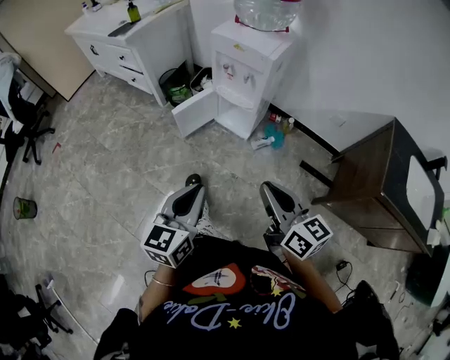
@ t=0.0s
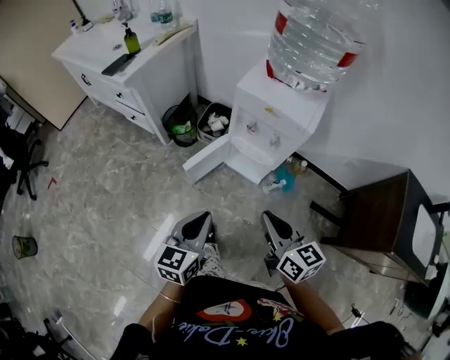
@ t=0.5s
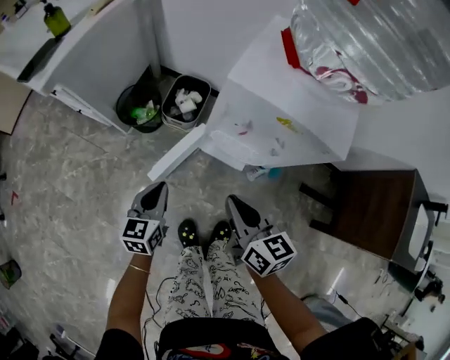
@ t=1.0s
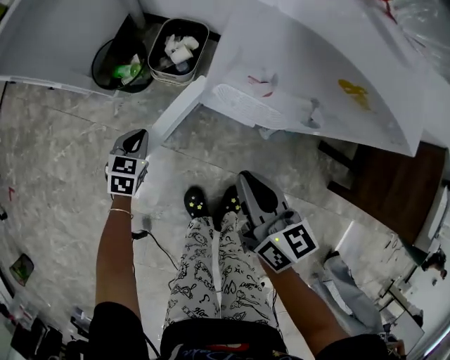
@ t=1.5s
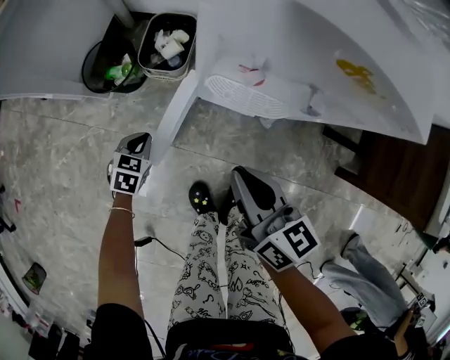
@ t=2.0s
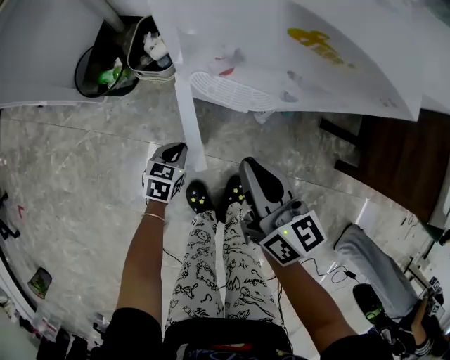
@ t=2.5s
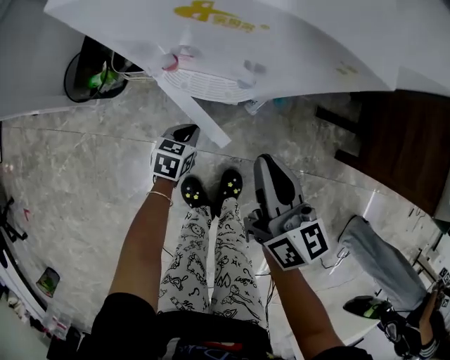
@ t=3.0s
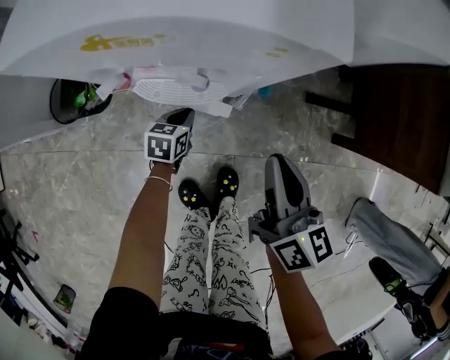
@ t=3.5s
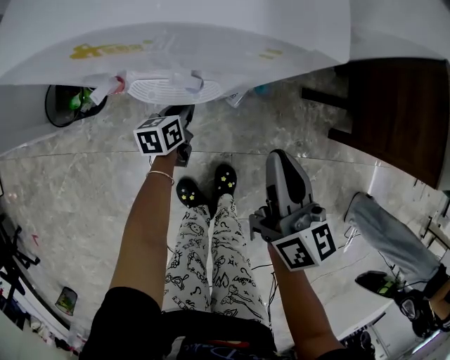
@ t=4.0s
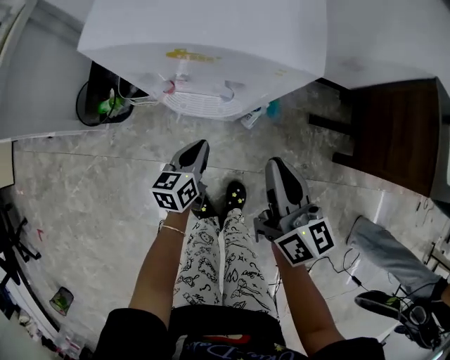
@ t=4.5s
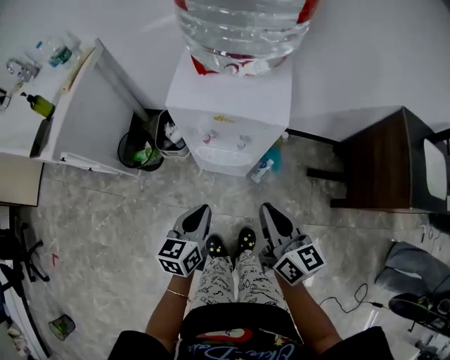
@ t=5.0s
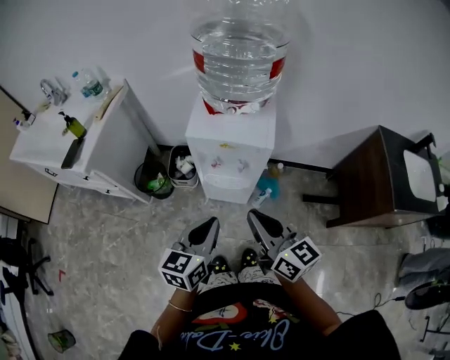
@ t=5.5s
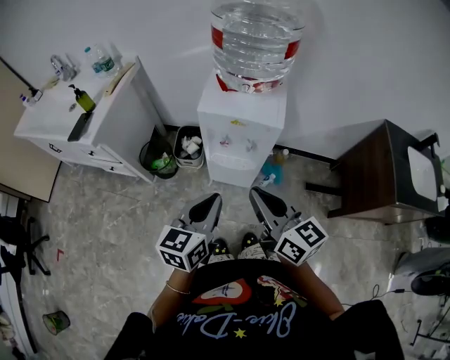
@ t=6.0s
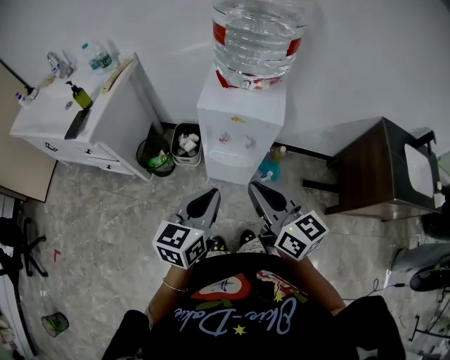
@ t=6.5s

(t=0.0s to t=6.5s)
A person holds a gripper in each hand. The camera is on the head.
t=0.0s - t=2.0s: The two grippers travel together, forward and to the left, approximately 50 cm. The left gripper is displaced downward by approximately 50 cm, and points its fingers approximately 40 degrees further downward; the right gripper is displaced downward by approximately 30 cm, and changes its angle by about 20 degrees.
t=2.0s - t=4.5s: The left gripper shifts by about 30 cm, and changes its angle by approximately 40 degrees. Meanwhile the right gripper changes place by roughly 20 cm, and rotates about 20 degrees.
t=4.5s - t=6.5s: The left gripper heads upward, covering some 40 cm, and rotates about 20 degrees. Meanwhile the right gripper moves upward, to the left and backward, roughly 30 cm, and swivels some 30 degrees.

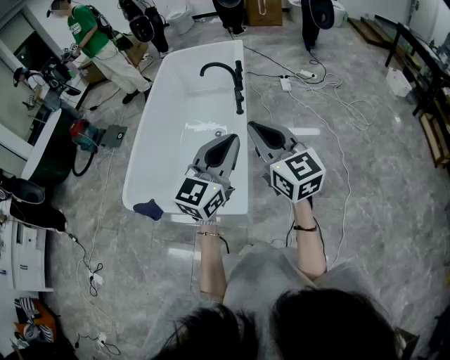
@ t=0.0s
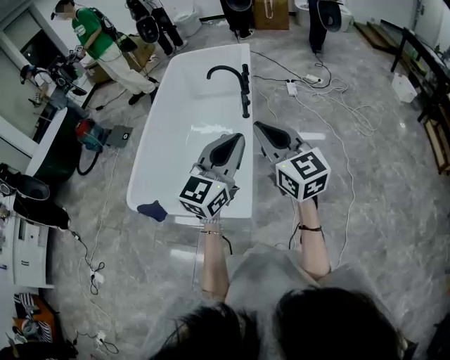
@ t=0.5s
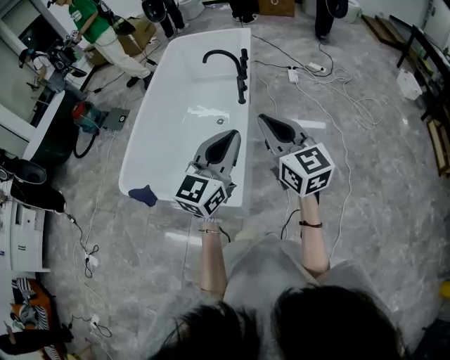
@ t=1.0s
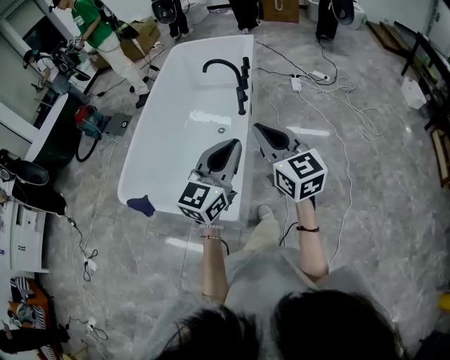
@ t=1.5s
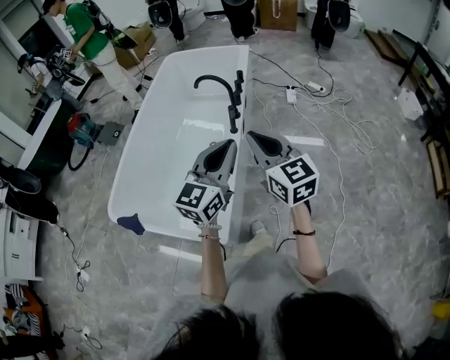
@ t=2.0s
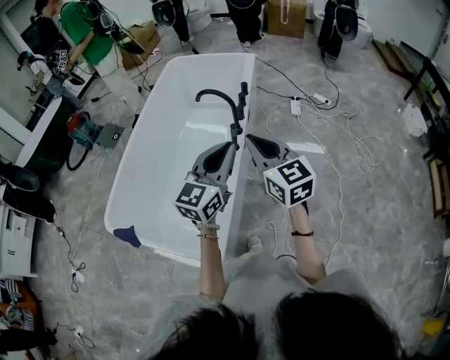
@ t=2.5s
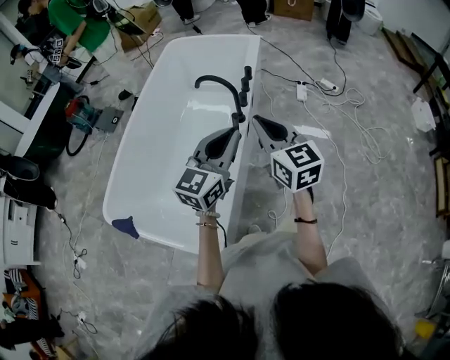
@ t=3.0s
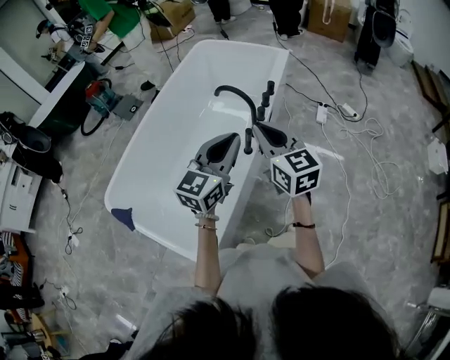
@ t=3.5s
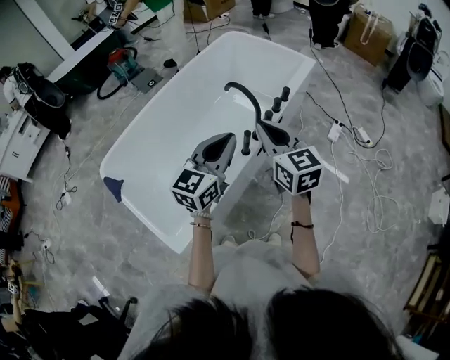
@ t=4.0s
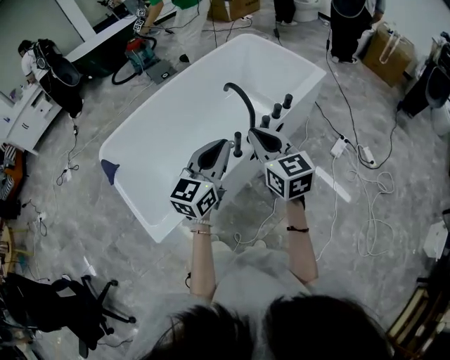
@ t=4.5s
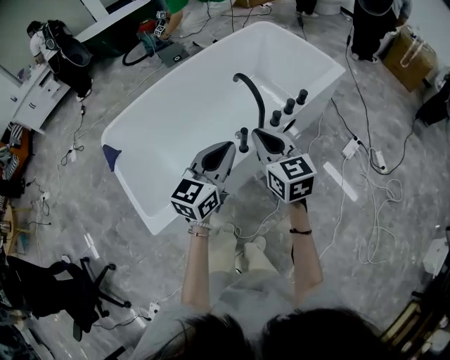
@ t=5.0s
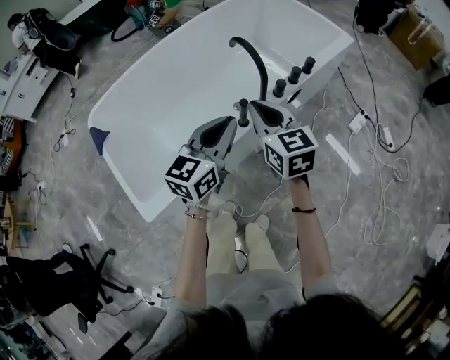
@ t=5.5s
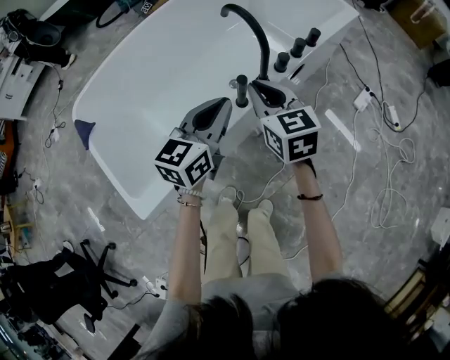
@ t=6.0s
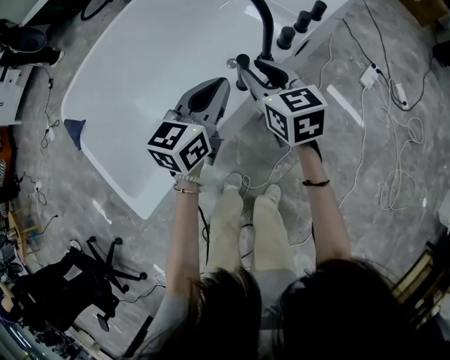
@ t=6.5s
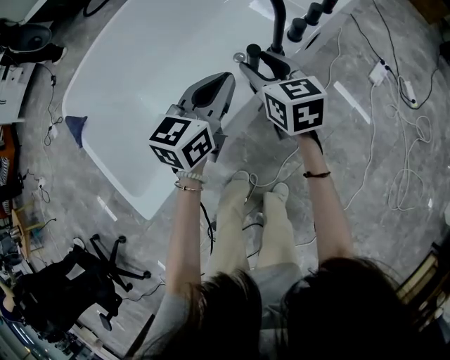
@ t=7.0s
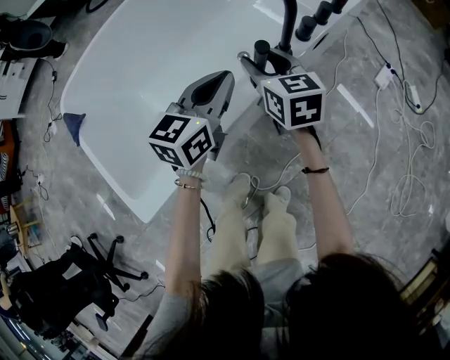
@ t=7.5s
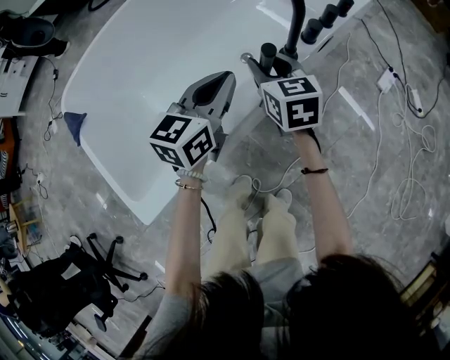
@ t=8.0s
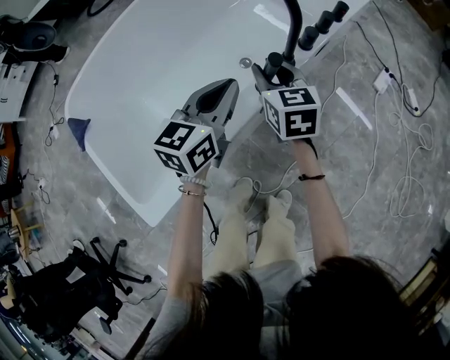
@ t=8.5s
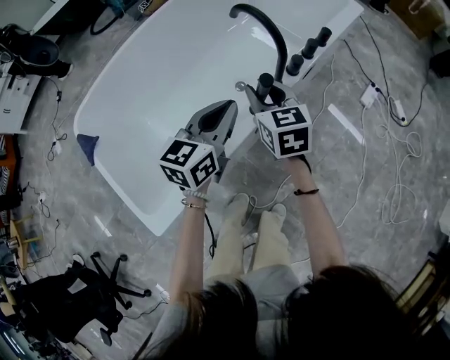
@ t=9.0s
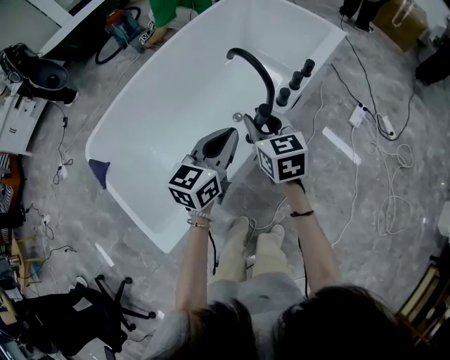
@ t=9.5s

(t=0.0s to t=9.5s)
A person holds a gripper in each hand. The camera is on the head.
t=0.0s - t=2.0s: Both grippers travel together forward, approximately 15 cm.
t=2.0s - t=4.0s: Both grippers travel together forward, roughly 25 cm. The right gripper turns by approximately 20 degrees, while the left gripper changes its angle by roughly 30 degrees.
t=4.0s - t=5.5s: The left gripper goes approximately 15 cm downward, while the right gripper travels downward and forward by about 15 cm.
t=5.5s - t=7.5s: The left gripper moves downward, about 20 cm. Meanwhile the right gripper is displaced downward and forward by about 20 cm, and opens its fingers.
t=7.5s - t=9.5s: Both grippers travel together upward, about 15 cm.

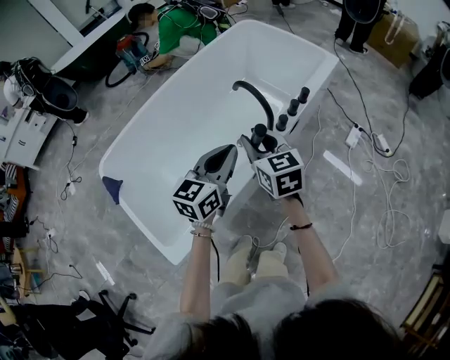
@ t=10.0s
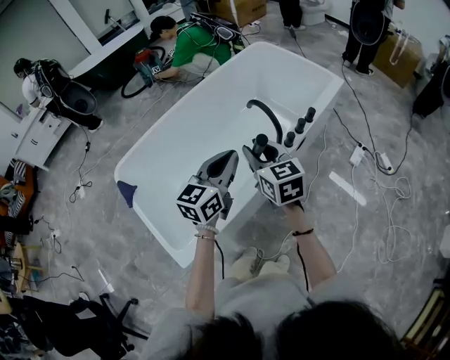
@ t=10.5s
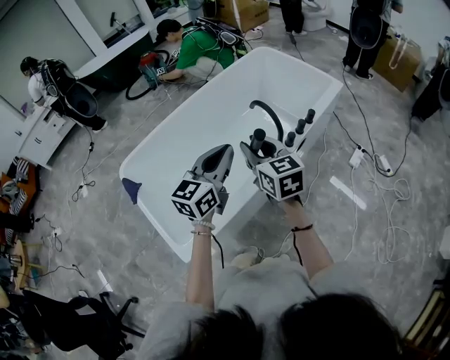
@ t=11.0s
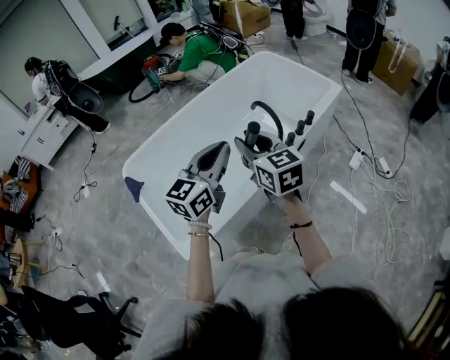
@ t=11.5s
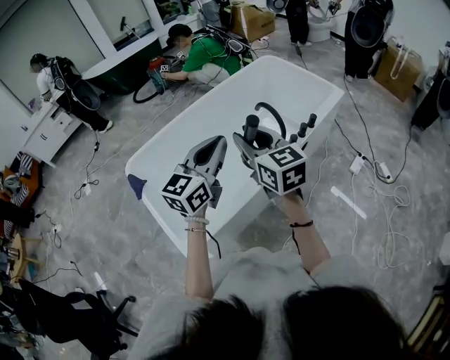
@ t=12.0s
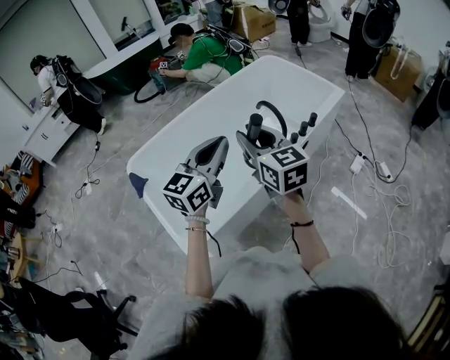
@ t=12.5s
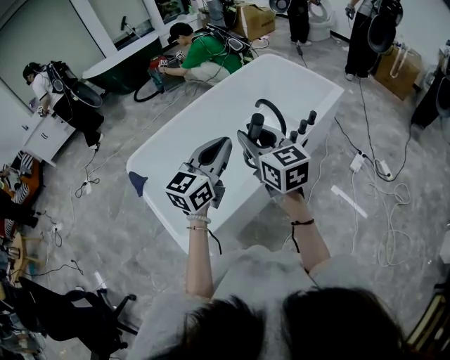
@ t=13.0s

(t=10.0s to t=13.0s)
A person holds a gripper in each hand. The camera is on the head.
t=10.0s - t=11.5s: Both grippers travel together upward, backward and to the left, approximately 15 cm.
t=11.5s - t=13.0s: The grippers move only a little.

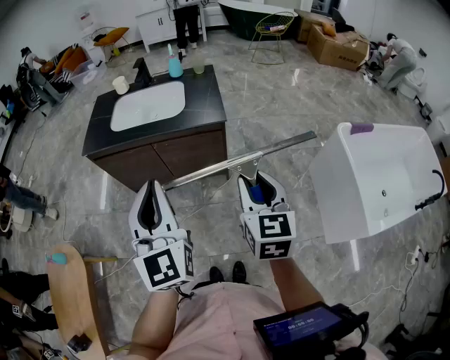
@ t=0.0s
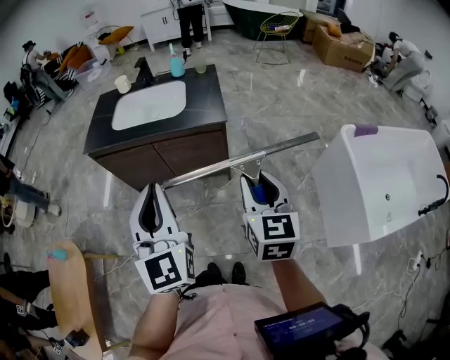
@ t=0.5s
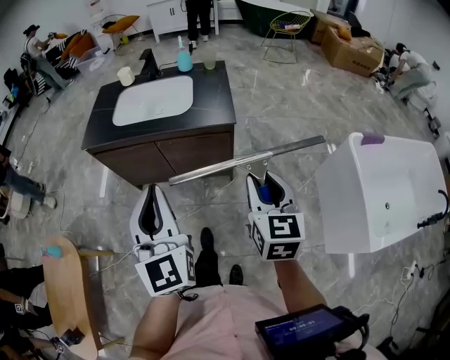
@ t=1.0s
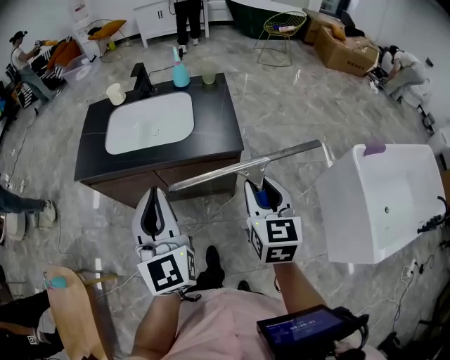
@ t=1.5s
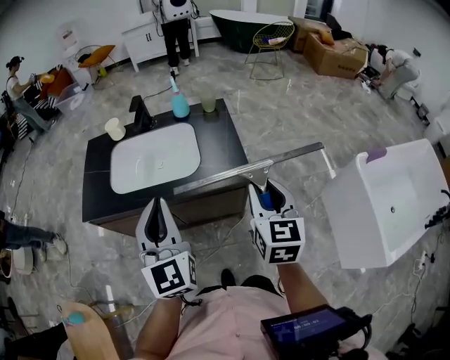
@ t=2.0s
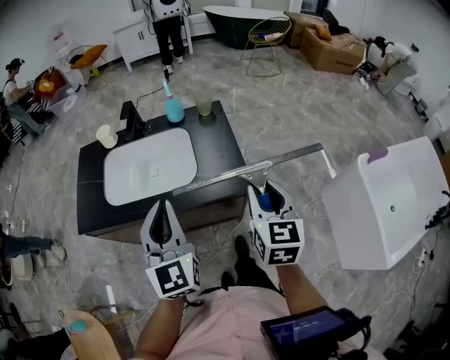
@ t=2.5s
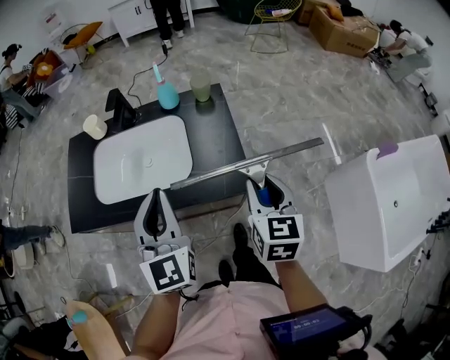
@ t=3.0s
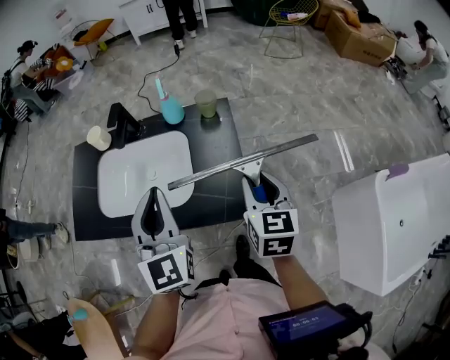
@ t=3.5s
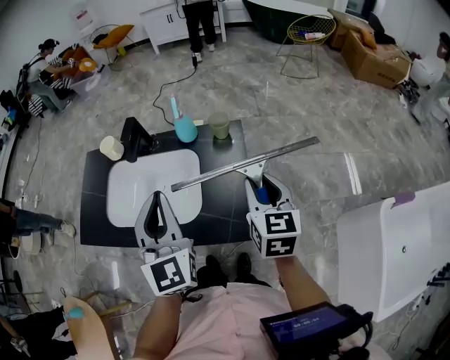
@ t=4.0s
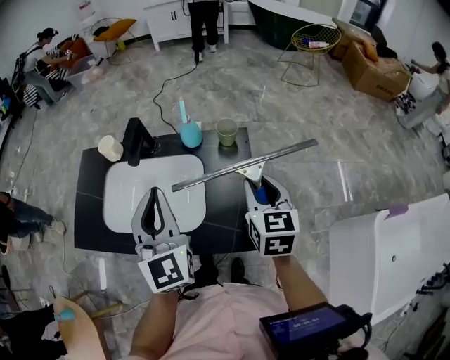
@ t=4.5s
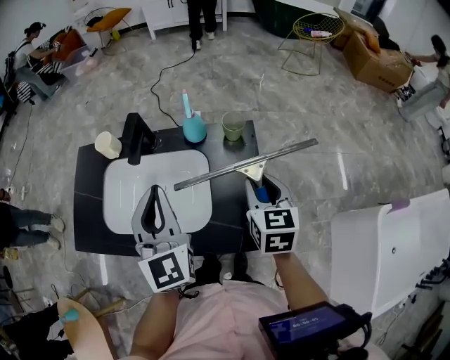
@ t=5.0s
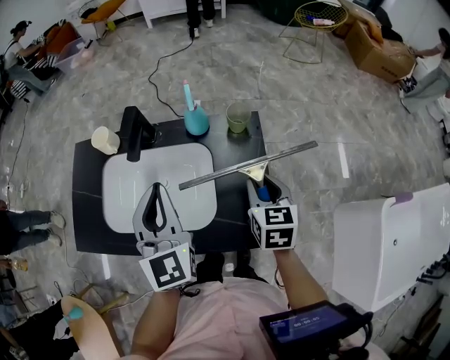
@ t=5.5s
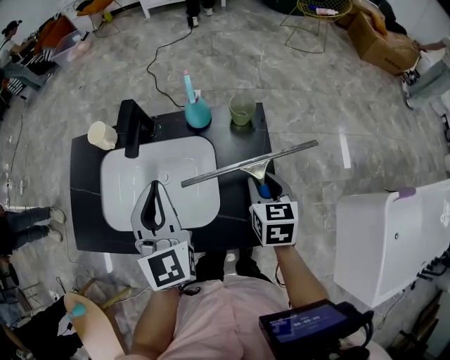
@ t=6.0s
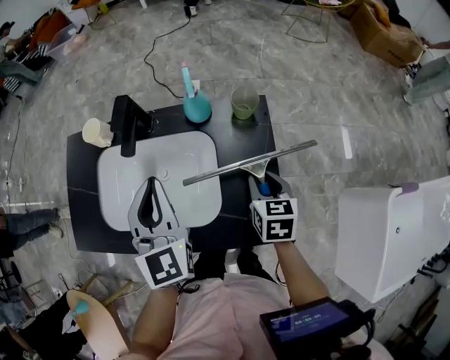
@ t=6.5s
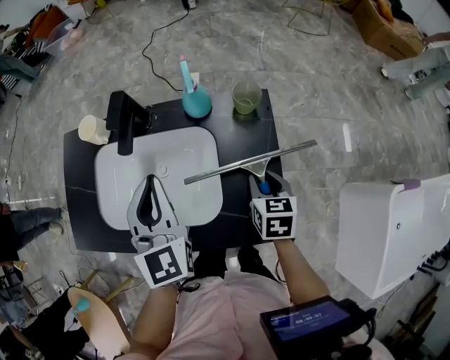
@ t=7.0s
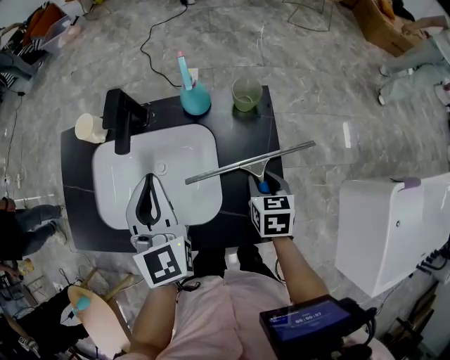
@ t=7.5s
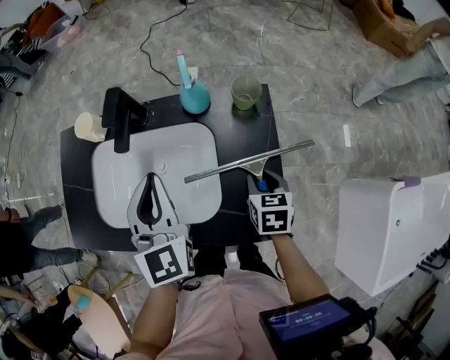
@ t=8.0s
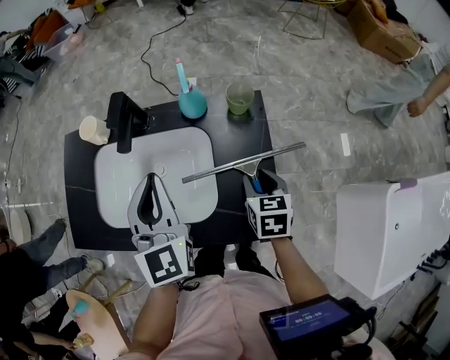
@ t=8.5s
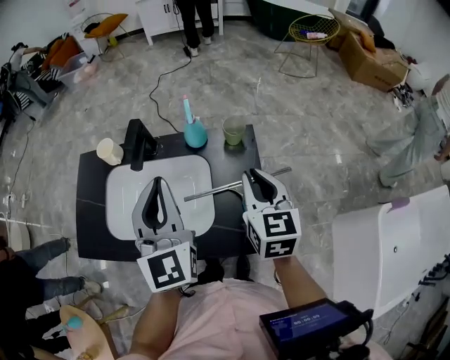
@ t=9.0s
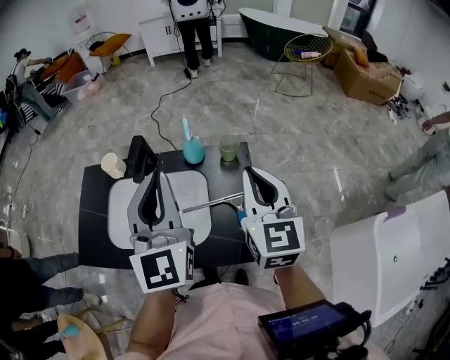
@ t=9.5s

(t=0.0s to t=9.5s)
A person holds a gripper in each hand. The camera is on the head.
t=0.0s - t=2.0s: The grippers both shift forward by approximately 30 cm.
t=2.0s - t=4.0s: The grippers both shift forward by about 25 cm.
t=4.0s - t=5.5s: The left gripper goes about 10 cm forward, to the left and downward; the right gripper heads downward and forward, covering some 10 cm.
t=5.5s - t=7.5s: The right gripper heads downward, covering about 10 cm, while the left gripper is displaced downward by roughly 5 cm.
t=7.5s - t=9.5s: The right gripper shifts approximately 30 cm upward, points its fingers approximately 40 degrees further upward, and closes its fingers; the left gripper shifts roughly 20 cm upward, and turns by roughly 20 degrees.
